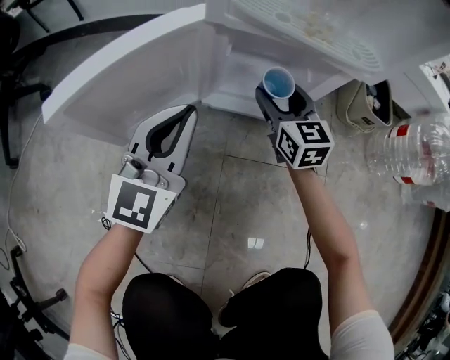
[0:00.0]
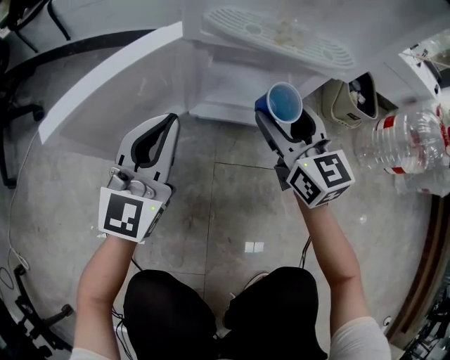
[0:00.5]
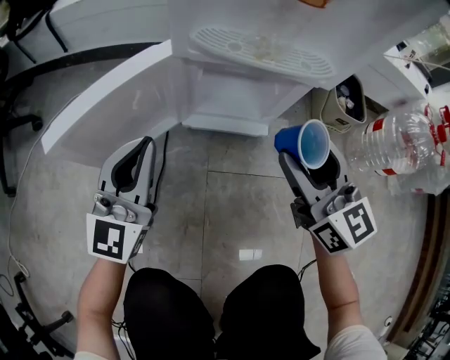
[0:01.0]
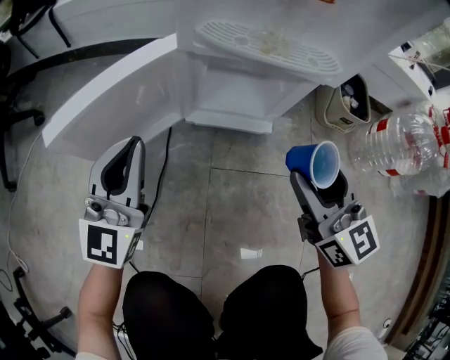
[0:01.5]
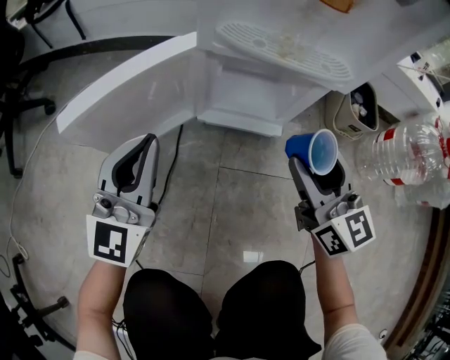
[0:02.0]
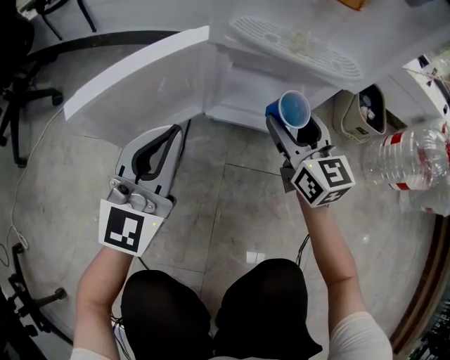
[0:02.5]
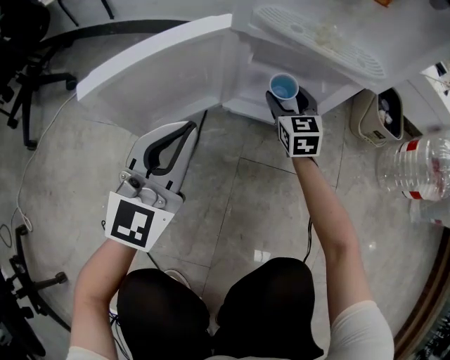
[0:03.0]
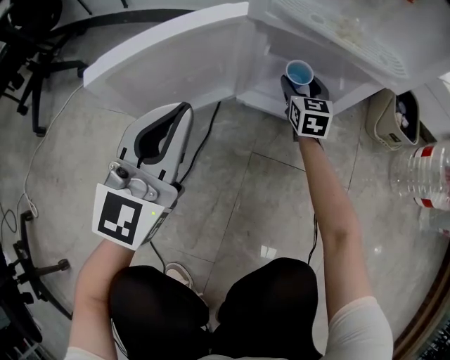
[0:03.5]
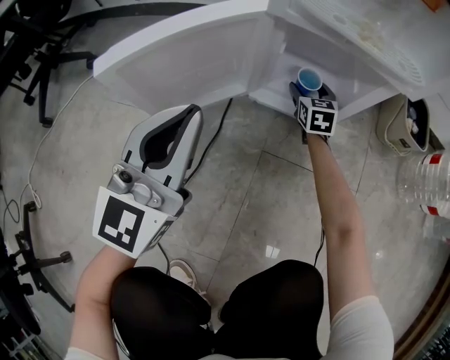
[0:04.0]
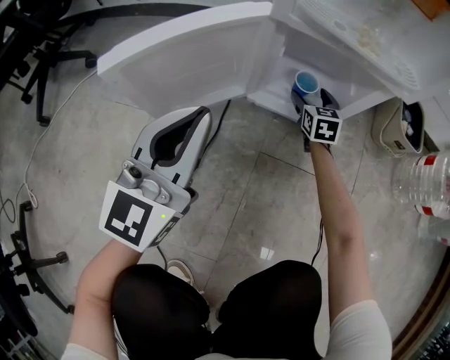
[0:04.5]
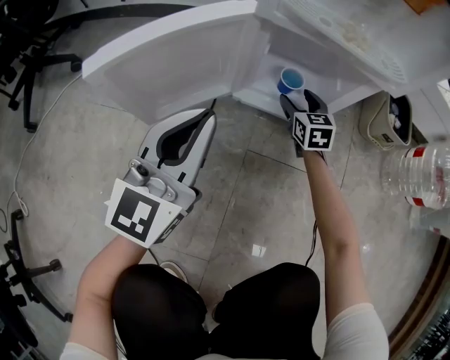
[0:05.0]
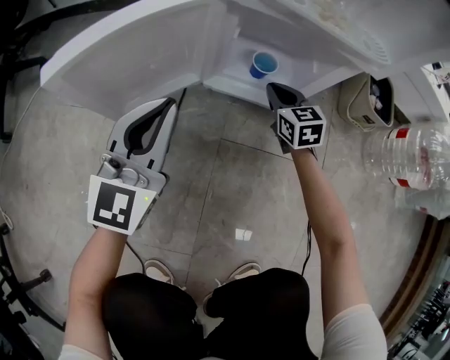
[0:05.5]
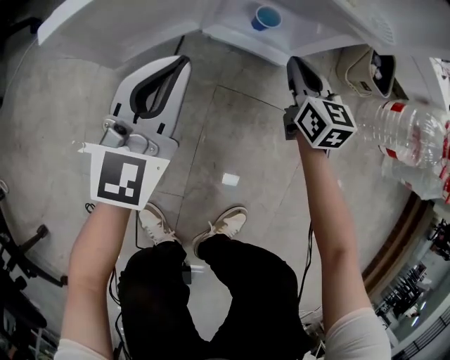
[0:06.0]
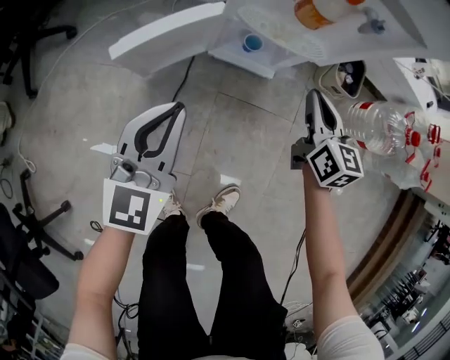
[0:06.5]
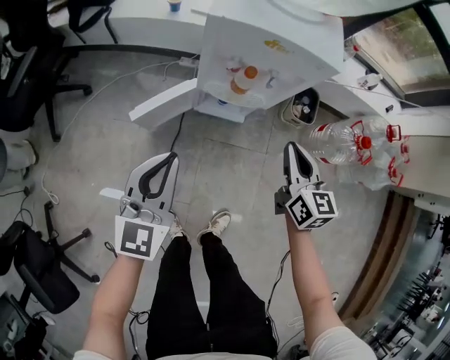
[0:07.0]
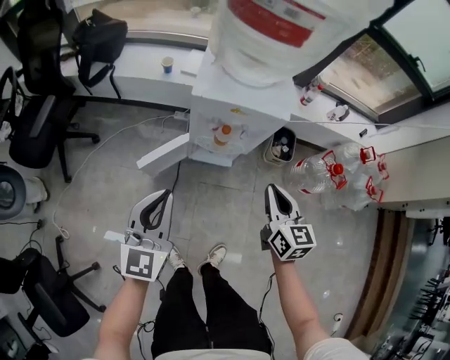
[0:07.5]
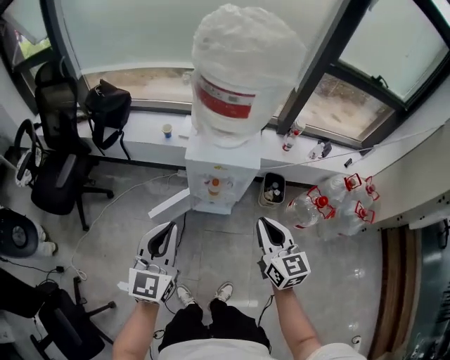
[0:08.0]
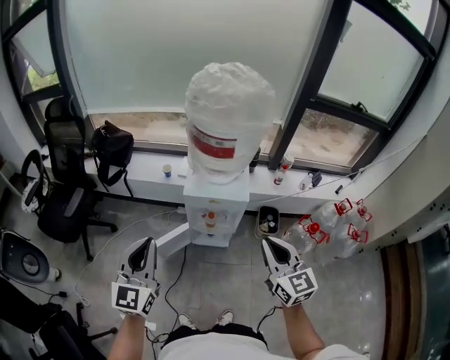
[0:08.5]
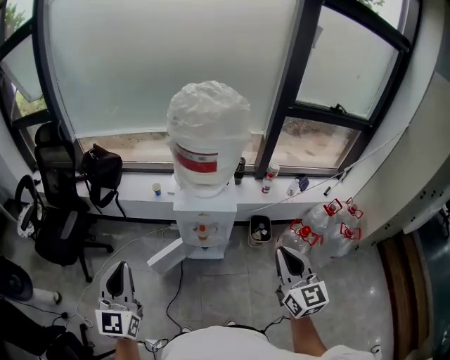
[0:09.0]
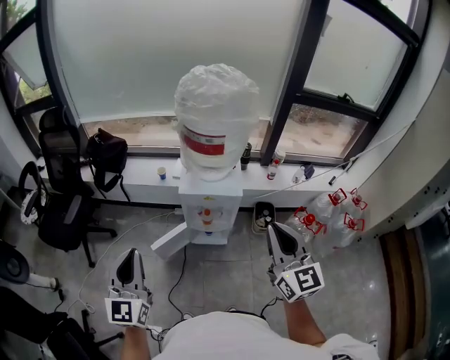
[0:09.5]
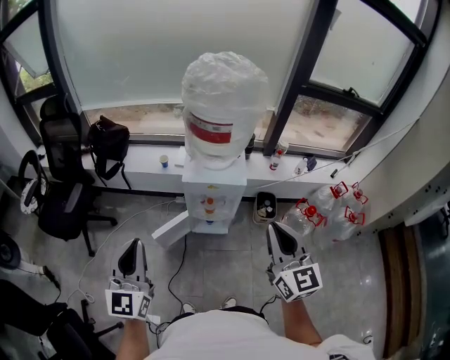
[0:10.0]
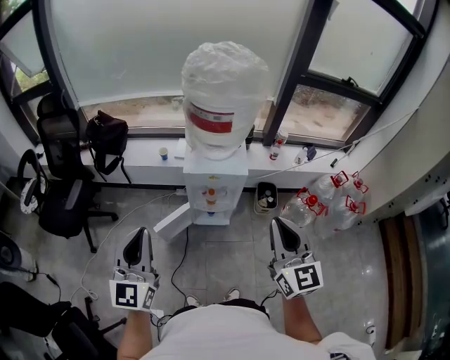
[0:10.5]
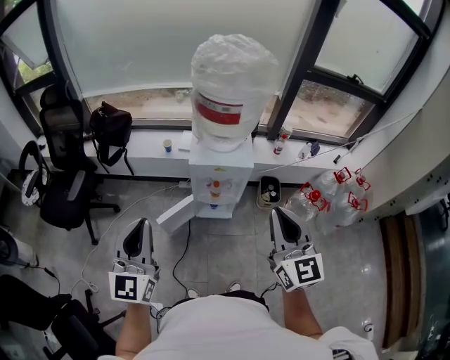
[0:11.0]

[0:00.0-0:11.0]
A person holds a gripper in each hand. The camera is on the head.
0:00.0 to 0:02.0: The right gripper shifts some 20 cm backward and upward. The left gripper moves upward, some 5 cm.
0:02.0 to 0:03.5: The right gripper travels forward and downward by approximately 30 cm, and swivels roughly 20 degrees.
0:03.5 to 0:05.5: The left gripper shifts approximately 5 cm downward. The right gripper travels backward by approximately 5 cm, and closes its fingers.
0:05.5 to 0:07.5: The two grippers go some 60 cm upward. The right gripper swivels roughly 30 degrees.
0:07.5 to 0:09.0: The two grippers go about 30 cm upward. The right gripper changes its angle by some 20 degrees.
0:09.0 to 0:11.0: The right gripper travels to the left by about 10 cm.

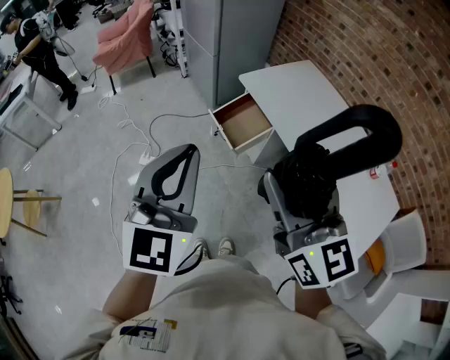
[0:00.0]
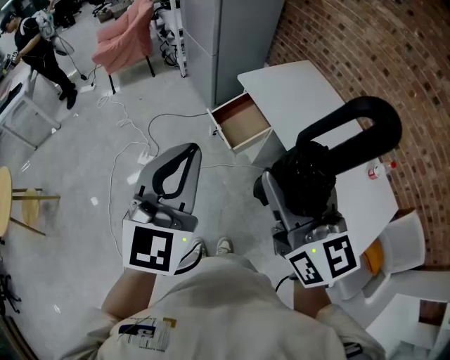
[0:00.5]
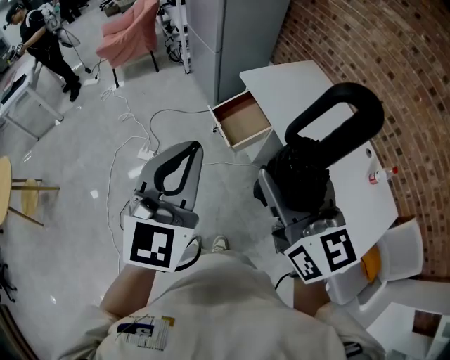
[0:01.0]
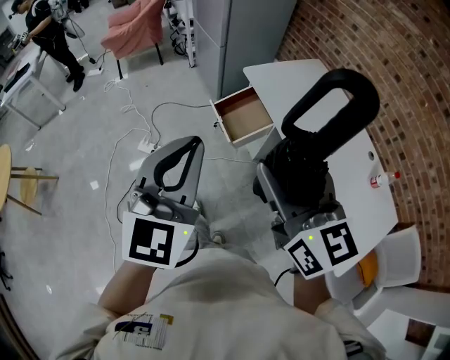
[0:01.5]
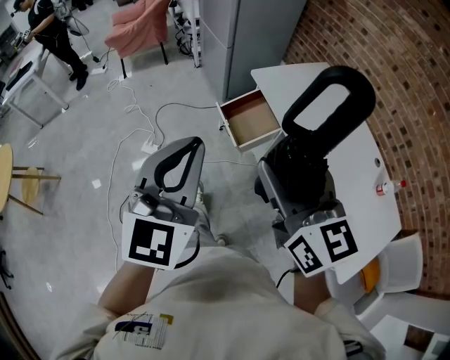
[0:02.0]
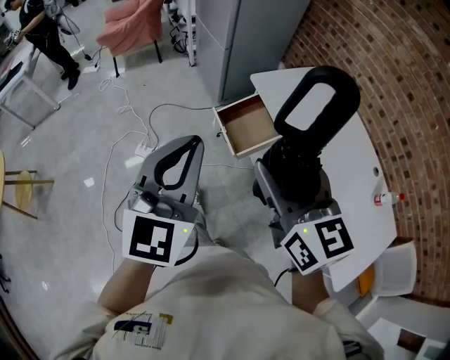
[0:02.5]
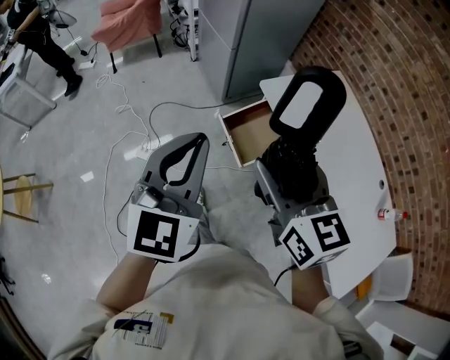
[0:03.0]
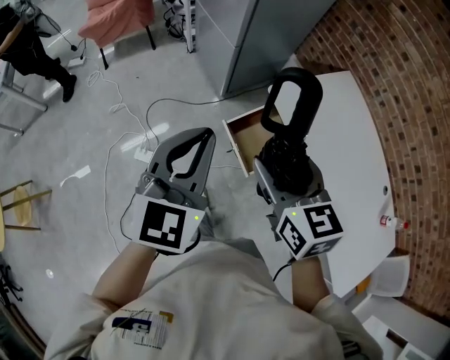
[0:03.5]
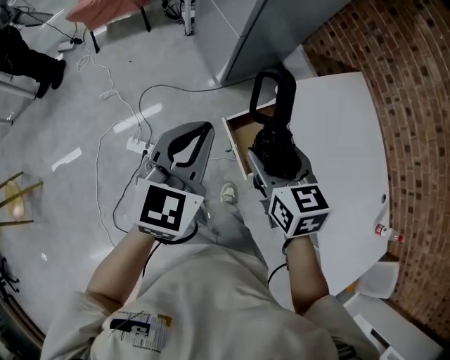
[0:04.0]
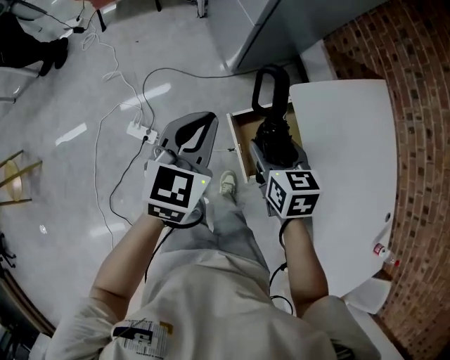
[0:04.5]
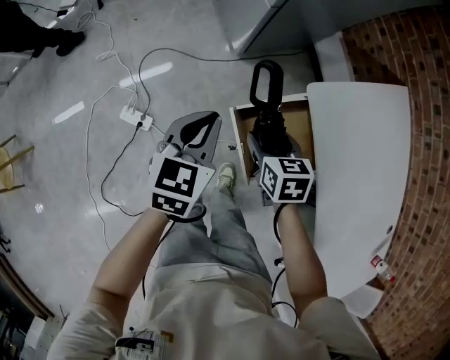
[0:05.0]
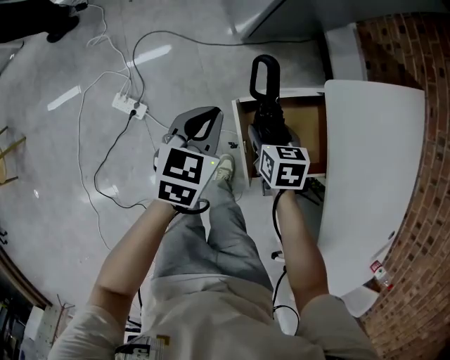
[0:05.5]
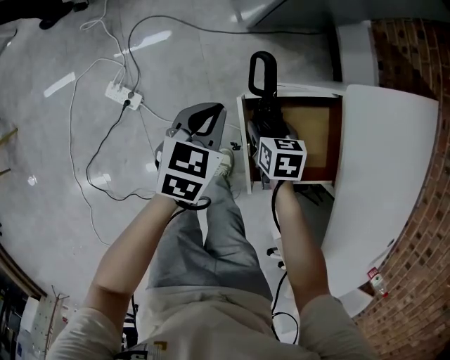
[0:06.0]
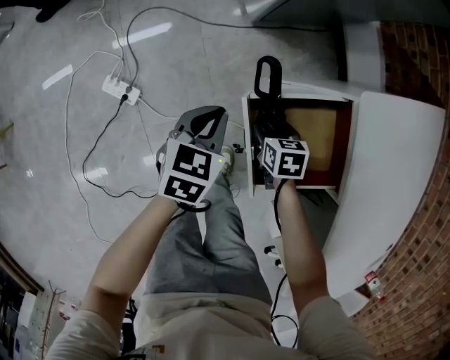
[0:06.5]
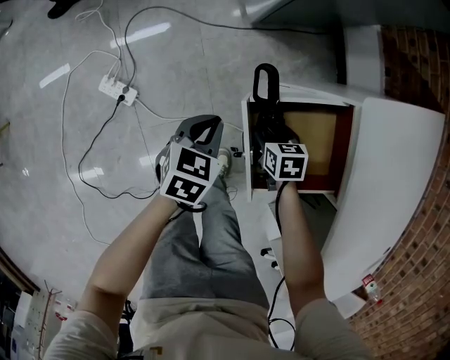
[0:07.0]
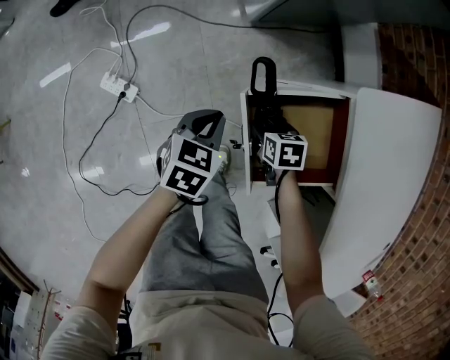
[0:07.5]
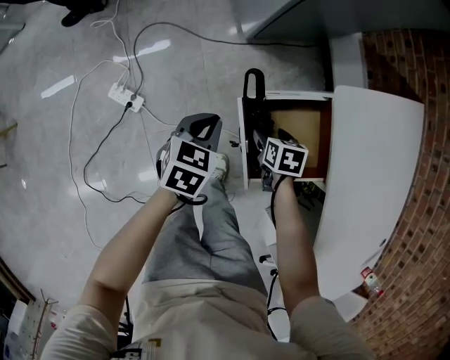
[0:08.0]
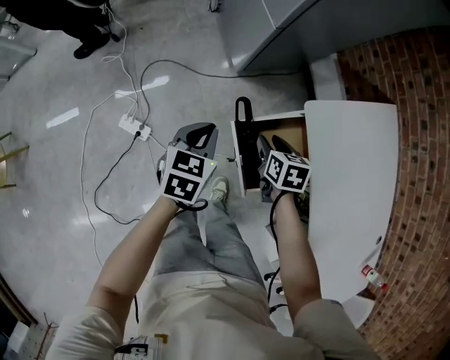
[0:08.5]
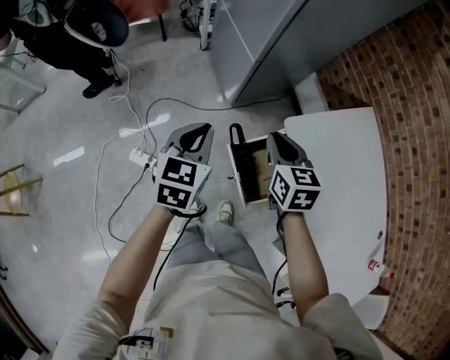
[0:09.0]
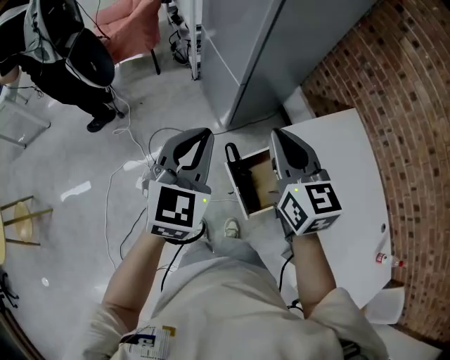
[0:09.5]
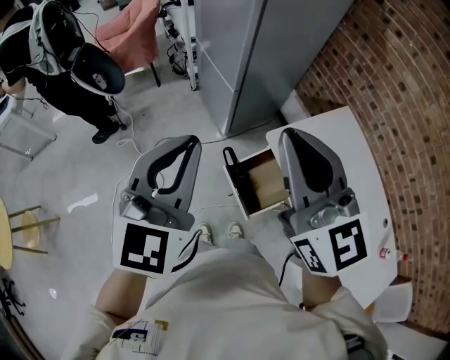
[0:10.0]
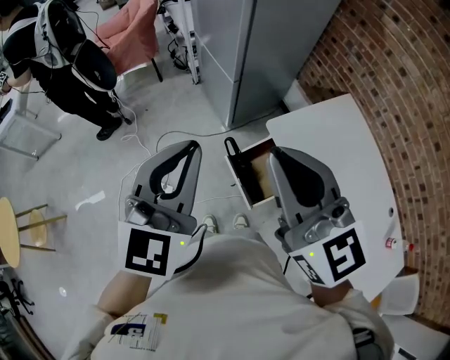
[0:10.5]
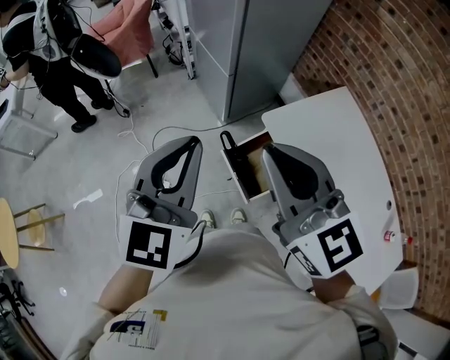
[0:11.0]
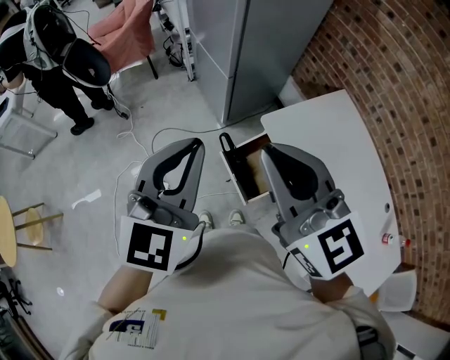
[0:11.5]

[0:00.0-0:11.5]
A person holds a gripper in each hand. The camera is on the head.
0:00.0 to 0:02.0: The right gripper goes approximately 10 cm forward and downward; the left gripper shifts by approximately 5 cm.
0:02.0 to 0:04.0: Both grippers are carried forward, roughly 40 cm. The right gripper shifts about 20 cm downward, and points its fingers roughly 30 degrees further downward, while the left gripper rotates approximately 20 degrees.
0:04.0 to 0:06.0: Both grippers travel together downward, about 40 cm. The right gripper turns by approximately 30 degrees; the left gripper changes its angle by some 30 degrees.
0:06.0 to 0:07.5: Both grippers move downward, about 5 cm.
0:07.5 to 0:09.5: The grippers both shift upward by approximately 60 cm. The right gripper tilts its fingers approximately 60 degrees upward, and closes up; the left gripper tips its fingers upward by some 30 degrees.
0:09.5 to 0:11.5: The two grippers go approximately 15 cm backward and upward.

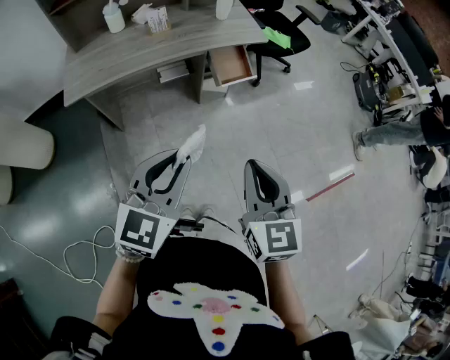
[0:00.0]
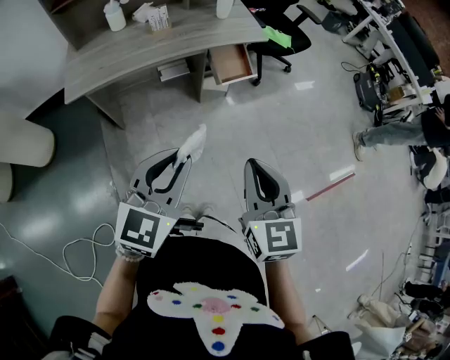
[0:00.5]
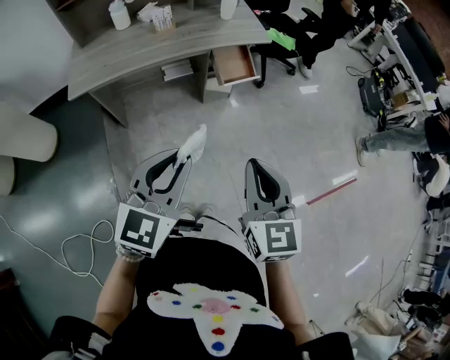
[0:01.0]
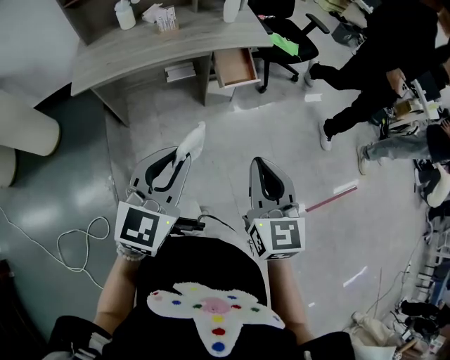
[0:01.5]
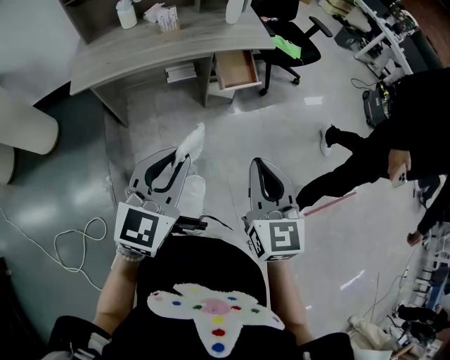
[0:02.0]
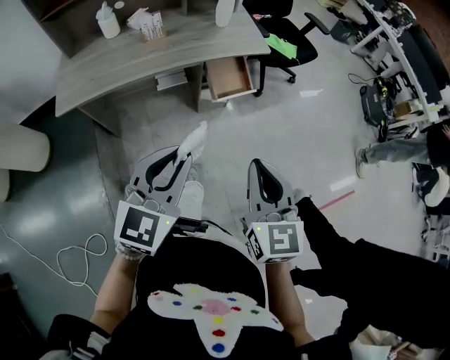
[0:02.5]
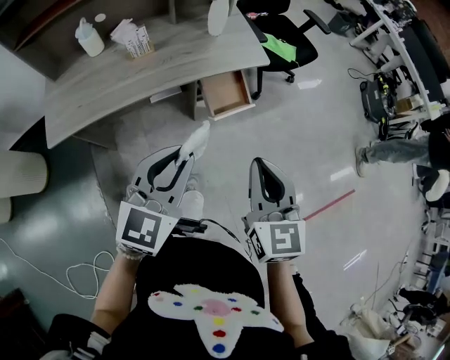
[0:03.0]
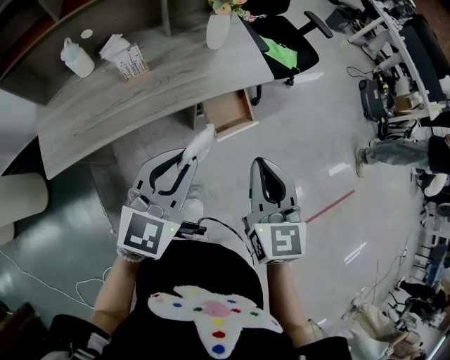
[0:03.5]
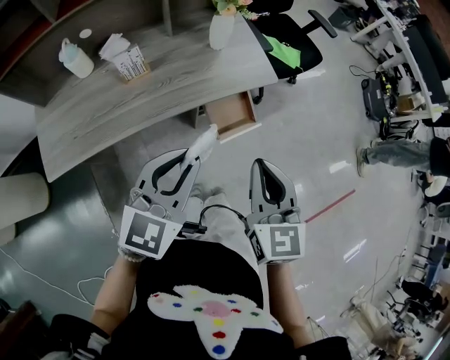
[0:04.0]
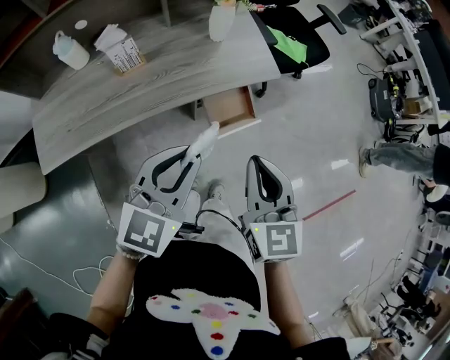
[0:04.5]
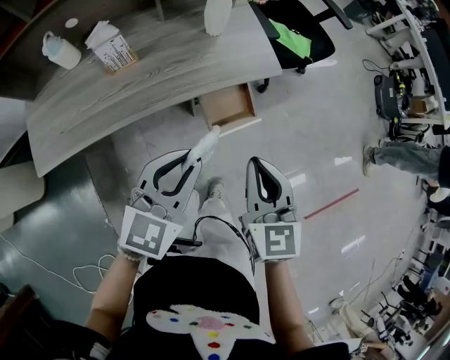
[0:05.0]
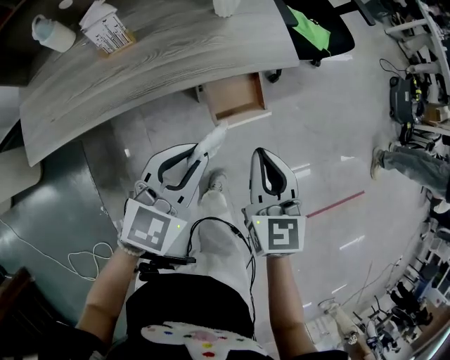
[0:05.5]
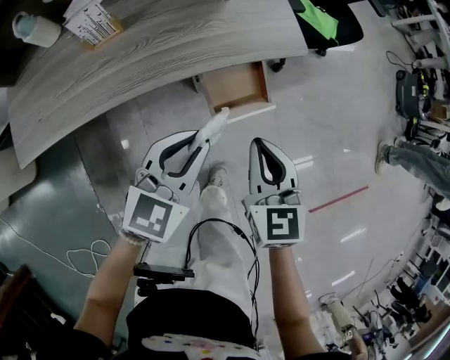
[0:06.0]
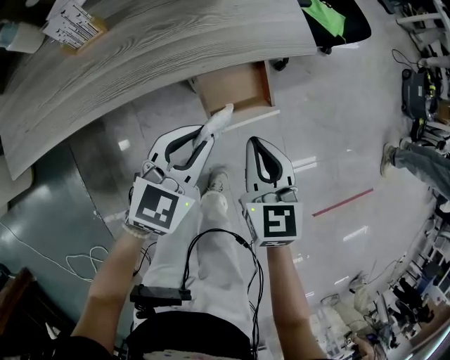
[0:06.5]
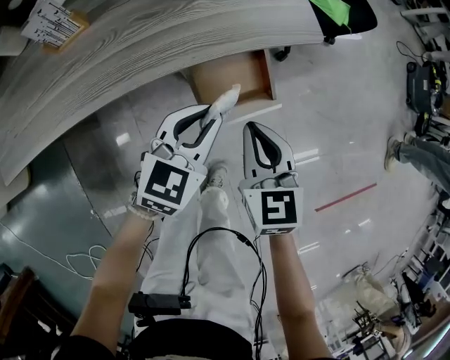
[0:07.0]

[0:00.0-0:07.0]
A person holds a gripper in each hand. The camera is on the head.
0:00.0 to 0:02.0: The grippers stay close to where they were, moving slightly.
0:02.0 to 0:03.5: The two grippers go some 30 cm forward.
0:03.5 to 0:05.0: Both grippers move downward, about 5 cm.
0:05.0 to 0:07.0: The left gripper heads downward and forward, covering approximately 25 cm. The right gripper is displaced downward by approximately 25 cm.
